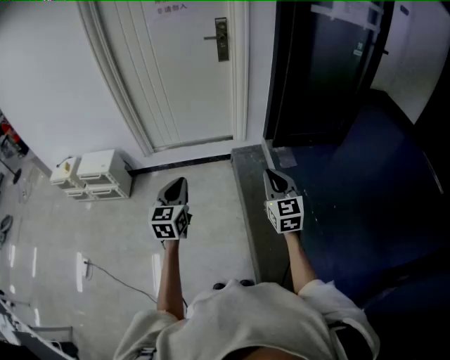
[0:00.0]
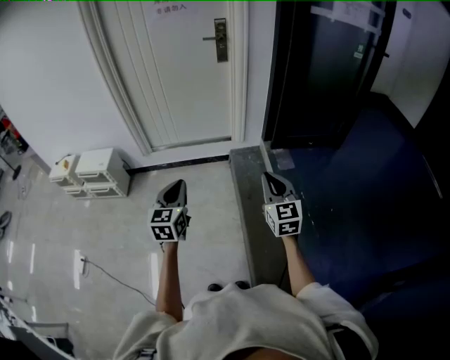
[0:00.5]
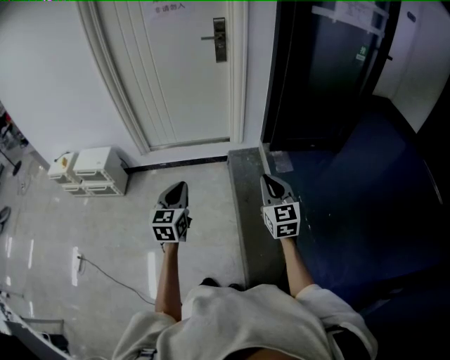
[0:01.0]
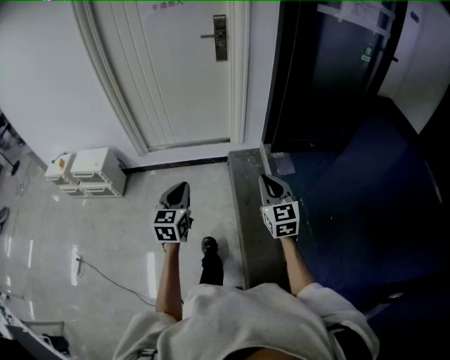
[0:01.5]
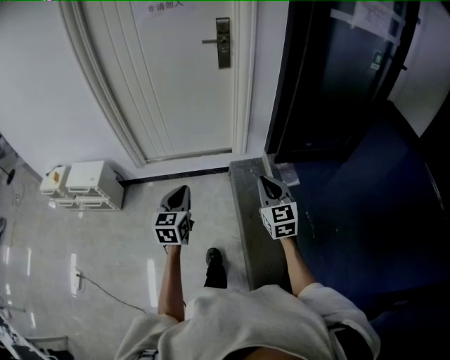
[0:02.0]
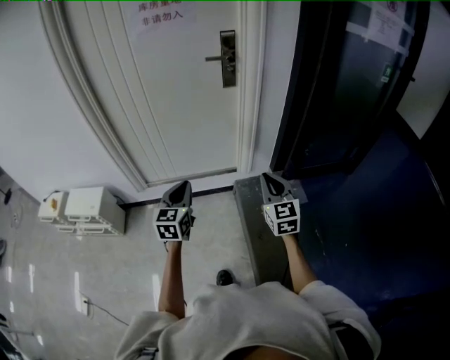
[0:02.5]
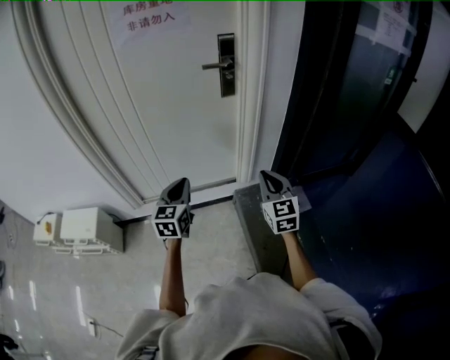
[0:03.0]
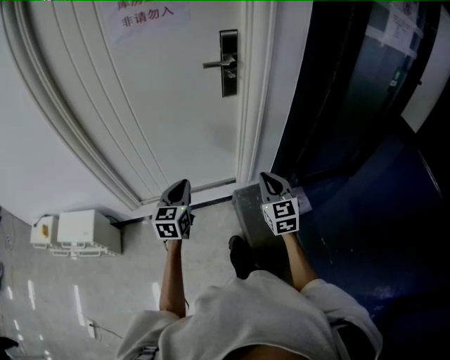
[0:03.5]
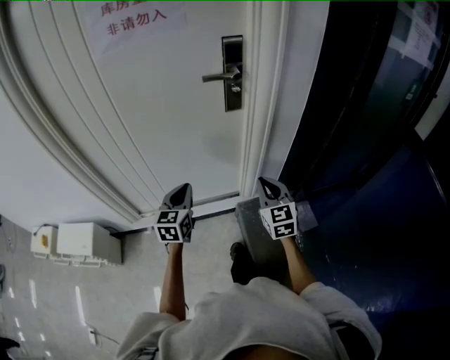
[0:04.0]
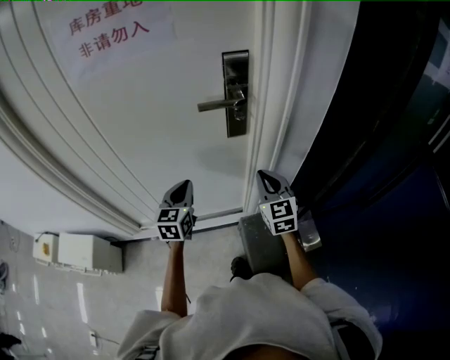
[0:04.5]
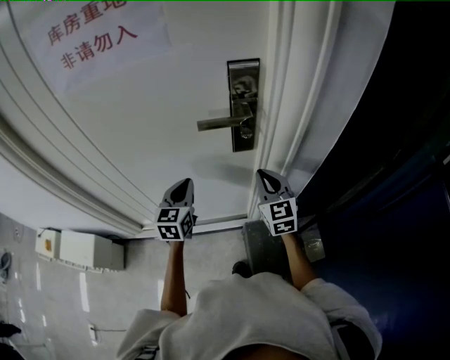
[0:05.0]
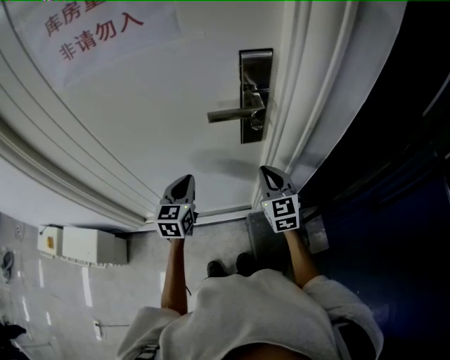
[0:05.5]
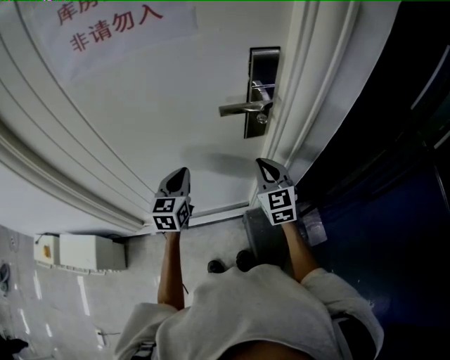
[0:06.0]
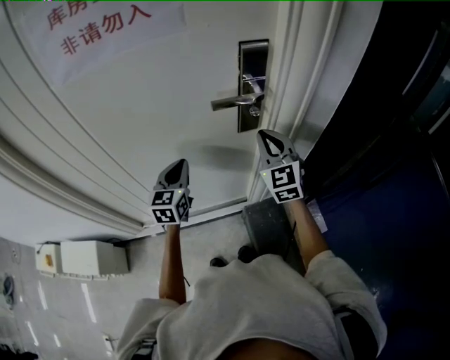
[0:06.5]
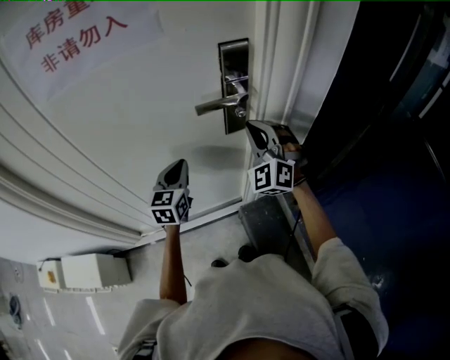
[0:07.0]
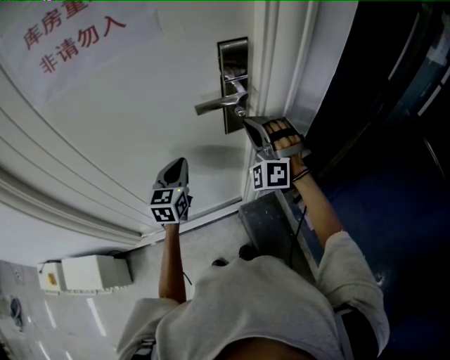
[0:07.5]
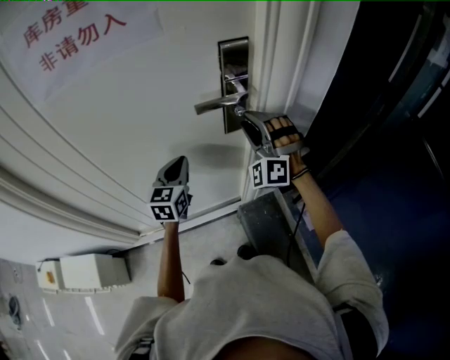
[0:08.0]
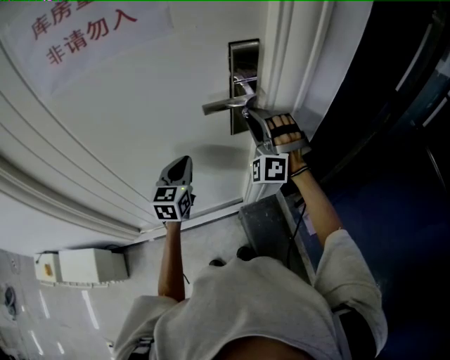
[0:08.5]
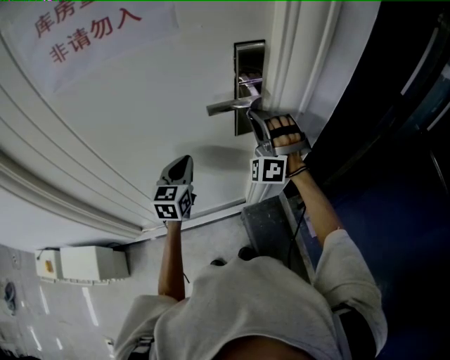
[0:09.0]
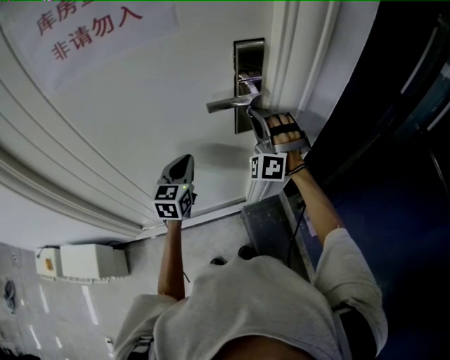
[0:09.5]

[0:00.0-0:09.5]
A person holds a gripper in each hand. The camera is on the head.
0:00.0 to 0:02.0: The grippers both shift forward by roughly 20 cm.
0:02.0 to 0:04.0: The two grippers travel together, forward, about 50 cm.
0:04.0 to 0:05.5: Both grippers travel together forward, roughly 25 cm.
0:05.5 to 0:07.5: The right gripper travels upward by about 10 cm, and rotates around the line of its fingers by approximately 70 degrees, counterclockwise from behind.
0:07.5 to 0:09.5: The right gripper opens, then closes once more.

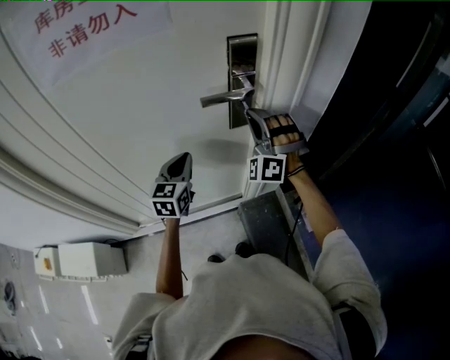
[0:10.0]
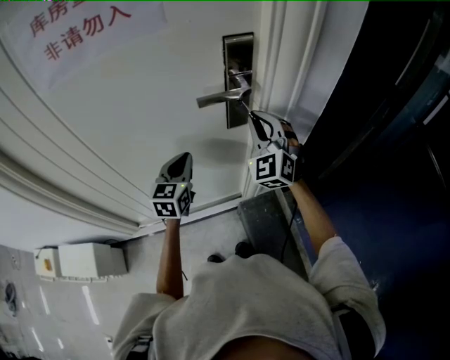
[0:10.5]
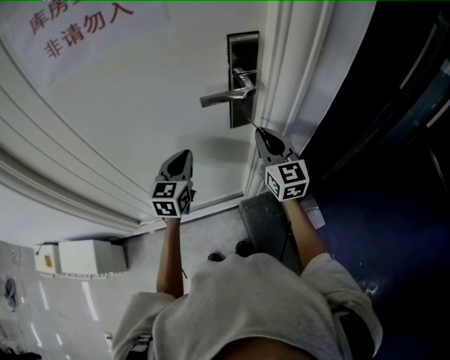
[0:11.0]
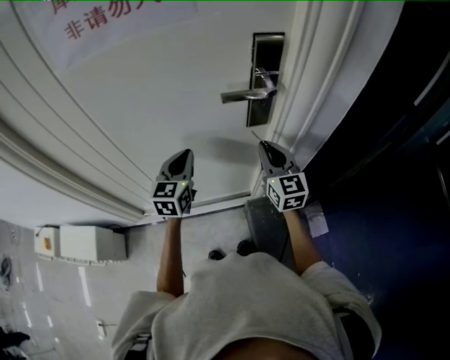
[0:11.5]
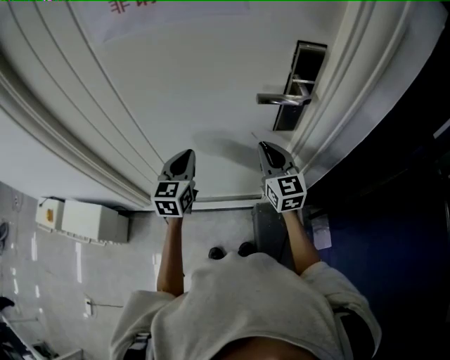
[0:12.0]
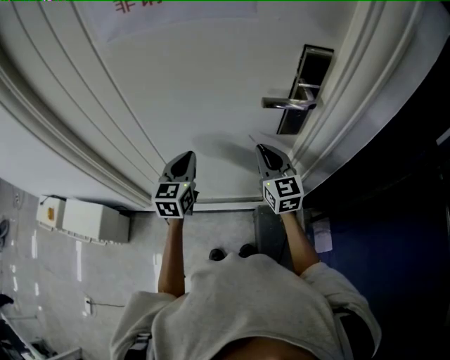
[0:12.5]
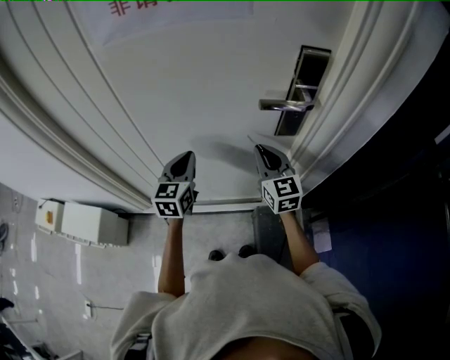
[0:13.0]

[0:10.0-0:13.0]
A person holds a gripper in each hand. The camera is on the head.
0:10.0 to 0:11.5: The right gripper heads downward, covering roughly 5 cm, and rotates around the line of its fingers by about 80 degrees, clockwise from behind.
0:11.5 to 0:13.0: Both grippers move to the left, some 10 cm.

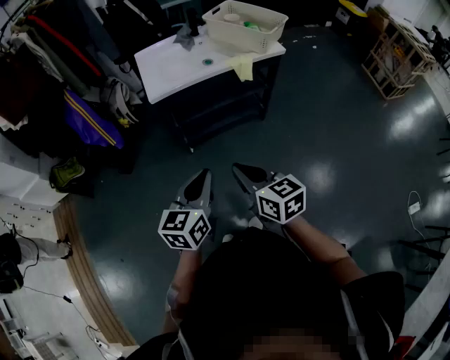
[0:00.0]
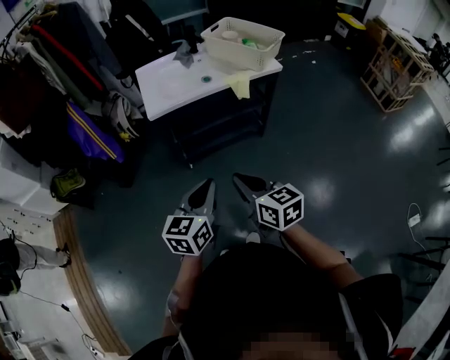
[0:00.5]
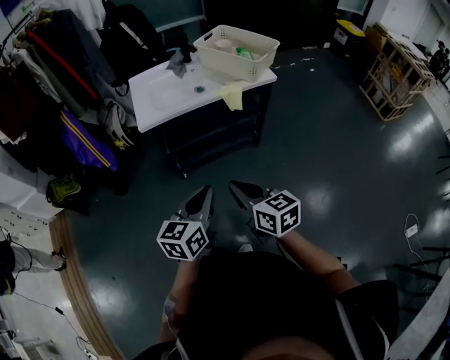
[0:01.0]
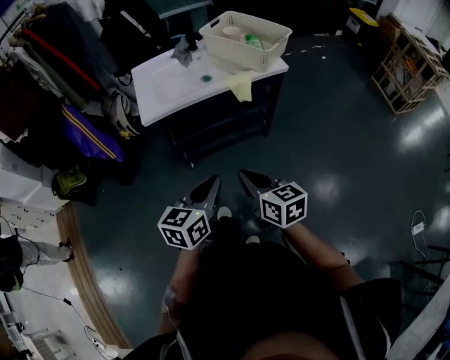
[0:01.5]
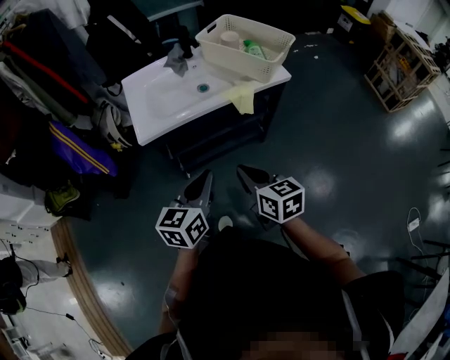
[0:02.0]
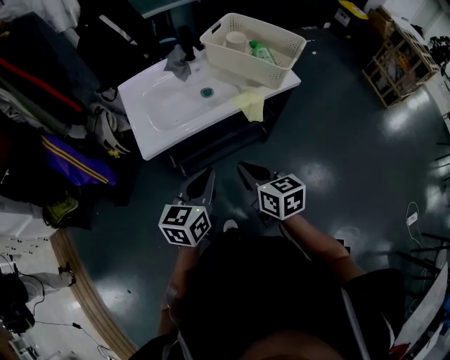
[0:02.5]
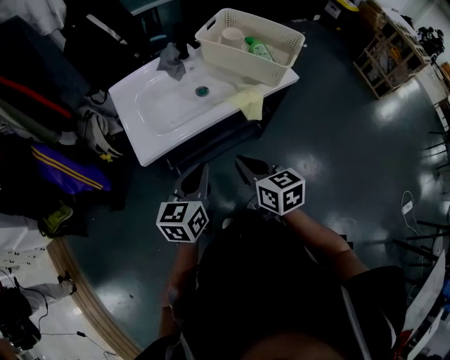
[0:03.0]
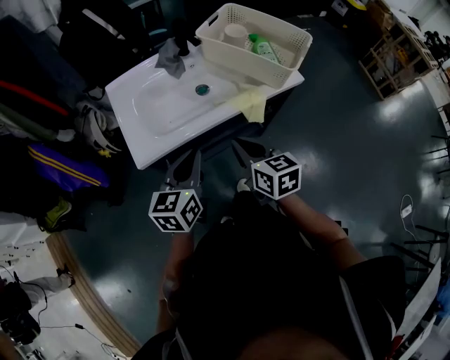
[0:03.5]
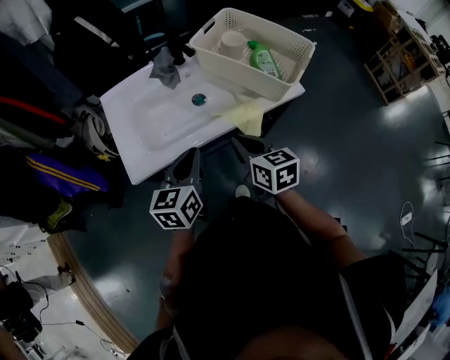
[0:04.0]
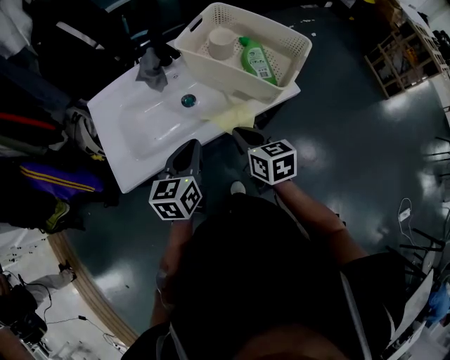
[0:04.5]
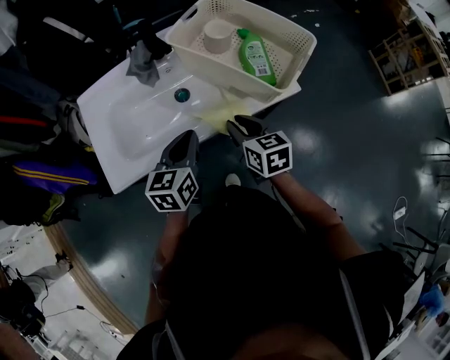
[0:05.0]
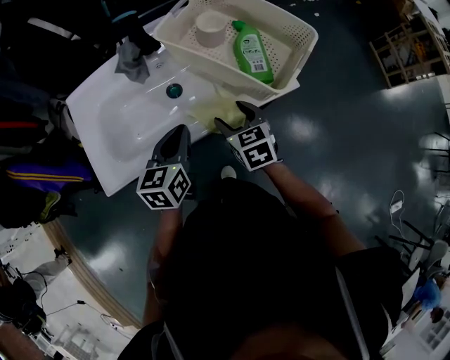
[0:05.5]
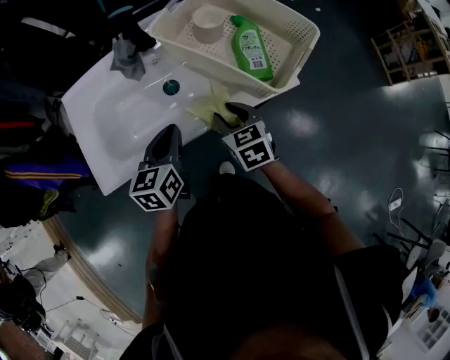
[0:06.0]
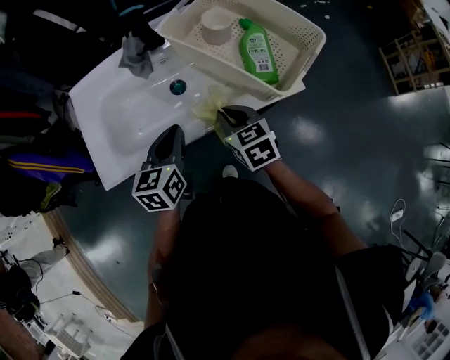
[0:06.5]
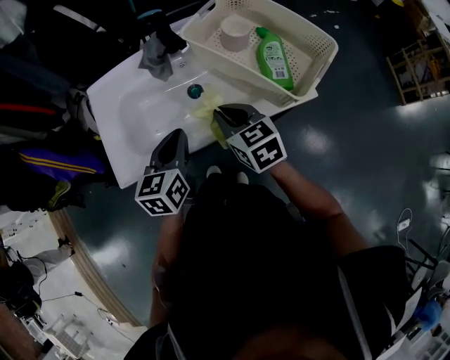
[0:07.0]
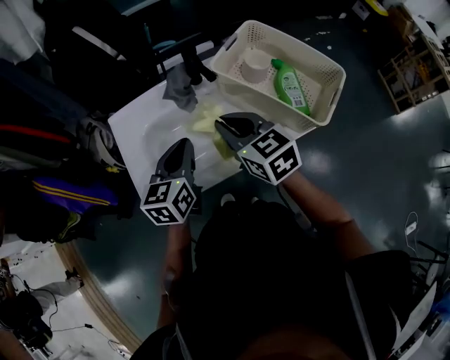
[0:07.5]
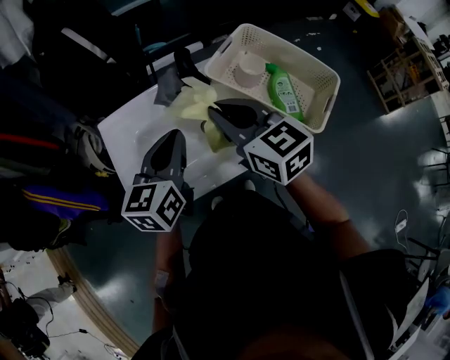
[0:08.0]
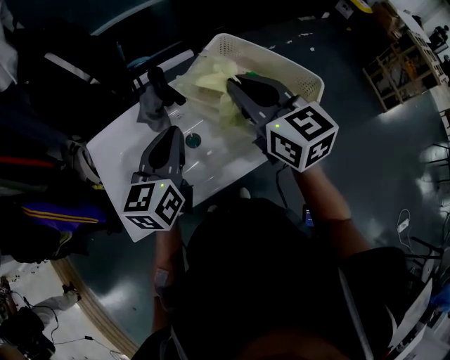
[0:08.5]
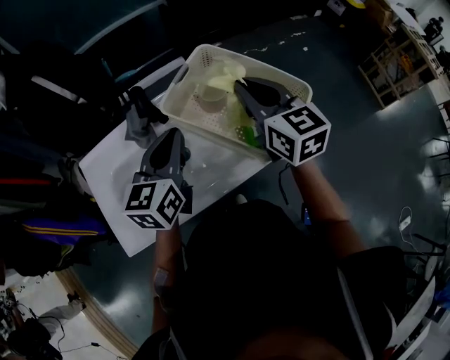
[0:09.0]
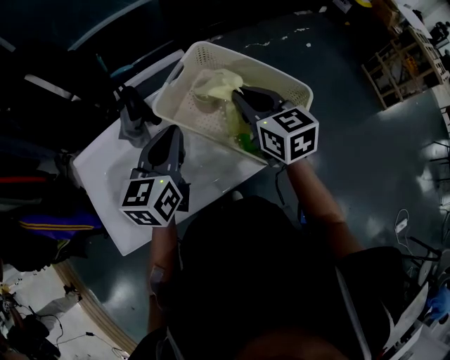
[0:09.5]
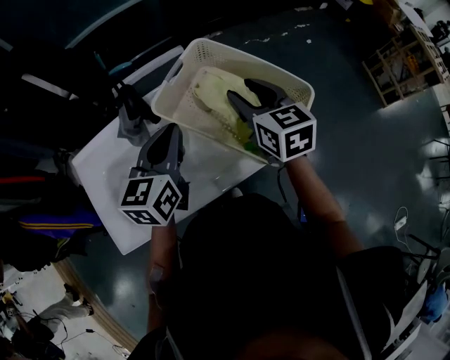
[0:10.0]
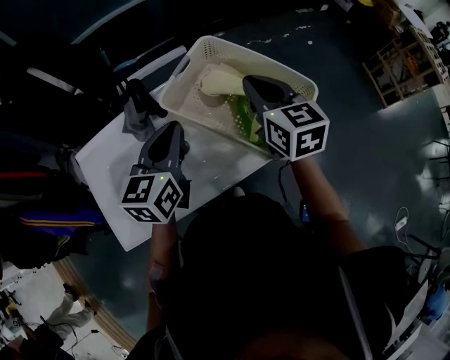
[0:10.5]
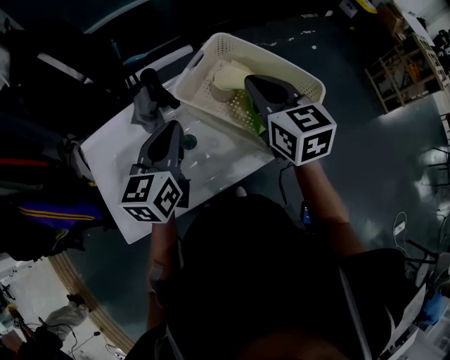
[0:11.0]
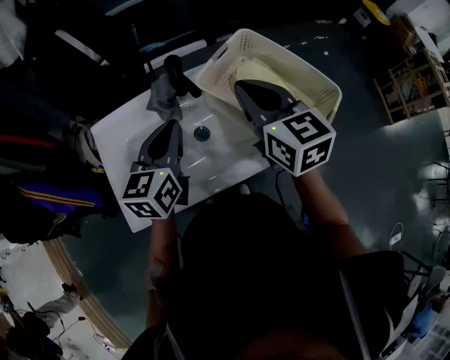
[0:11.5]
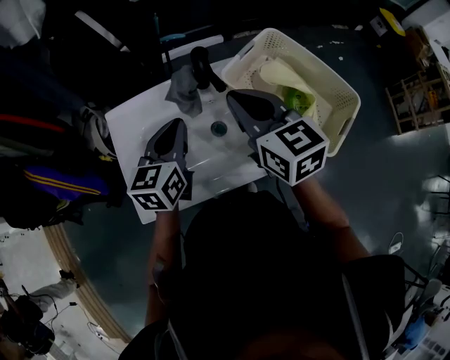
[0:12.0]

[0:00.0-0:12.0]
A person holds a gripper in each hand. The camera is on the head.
0:00.0 to 0:02.0: Both grippers travel together forward, about 20 cm.
0:02.0 to 0:04.0: Both grippers travel together forward, about 25 cm.
0:04.0 to 0:06.0: The grippers both shift forward, downward and to the right by approximately 15 cm. The right gripper rotates some 20 degrees, and opens its fingers.
0:06.0 to 0:08.0: The right gripper moves upward and to the left, about 25 cm, changes its angle by approximately 30 degrees, and closes its fingers; the left gripper is displaced upward, to the left and forward by some 20 cm.
0:08.0 to 0:10.0: The two grippers go about 20 cm to the right and forward. The right gripper opens.
0:10.0 to 0:12.0: Both grippers travel together to the left, some 20 cm. The right gripper closes.

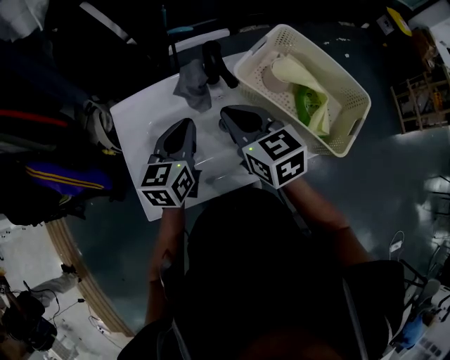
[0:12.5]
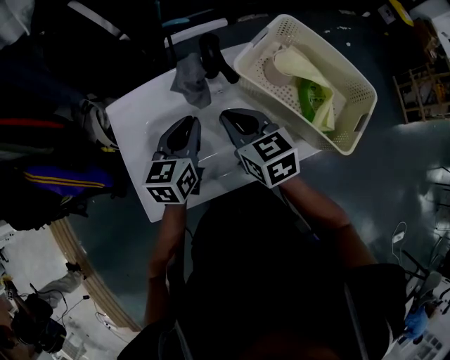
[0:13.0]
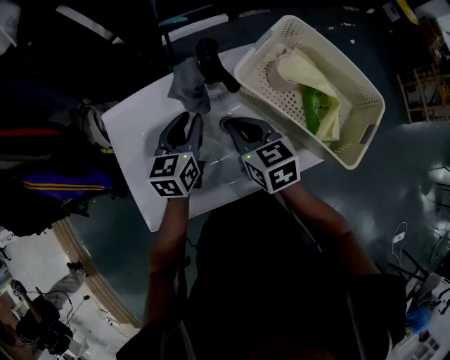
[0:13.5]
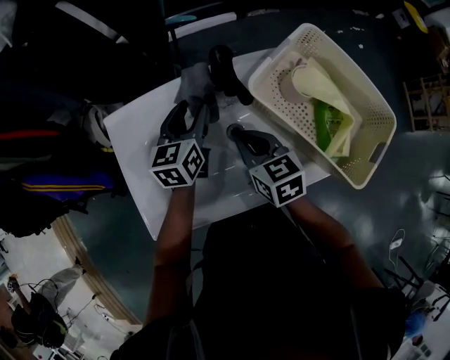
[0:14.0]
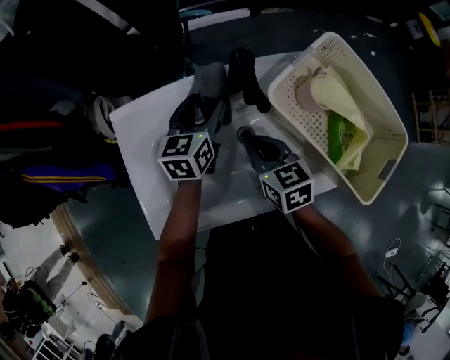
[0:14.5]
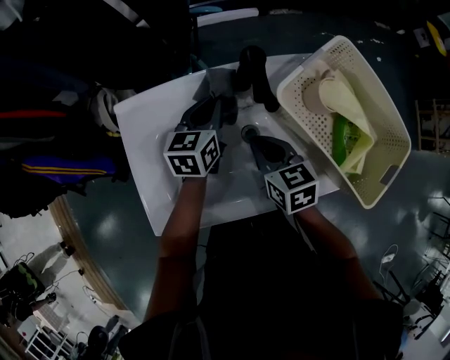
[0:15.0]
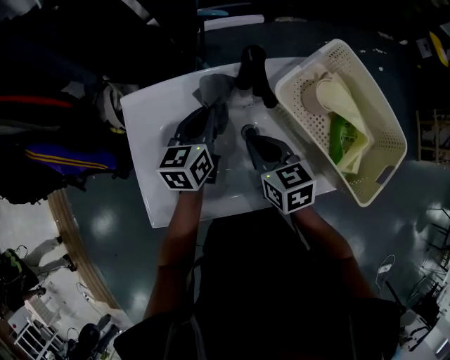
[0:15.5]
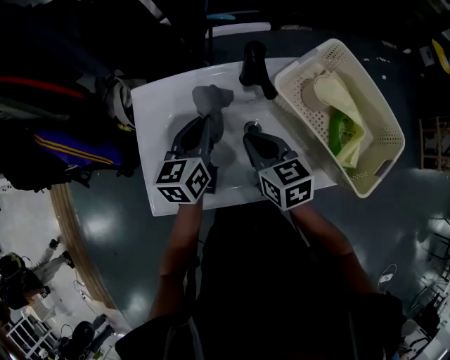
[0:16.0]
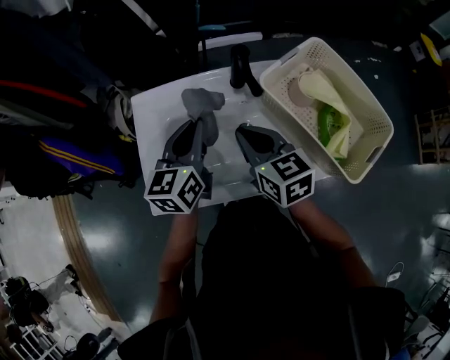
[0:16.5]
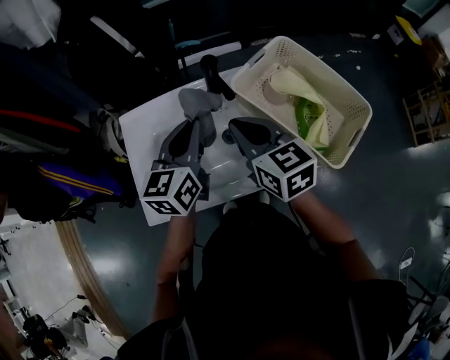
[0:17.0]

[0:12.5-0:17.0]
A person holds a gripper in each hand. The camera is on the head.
0:12.5 to 0:14.5: The left gripper heads forward and downward, covering some 15 cm, and opens. Meanwhile the right gripper travels downward by some 15 cm.
0:14.5 to 0:17.0: The right gripper shifts about 15 cm upward. Meanwhile the left gripper is displaced upward and backward by about 20 cm, and closes its fingers.
